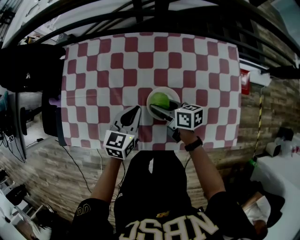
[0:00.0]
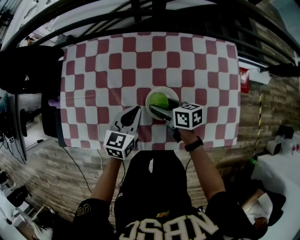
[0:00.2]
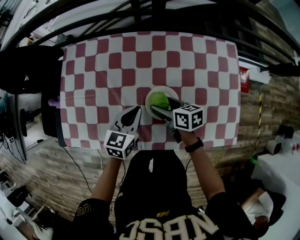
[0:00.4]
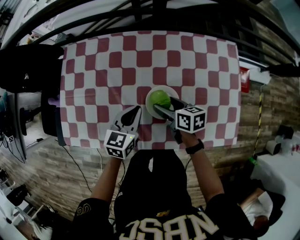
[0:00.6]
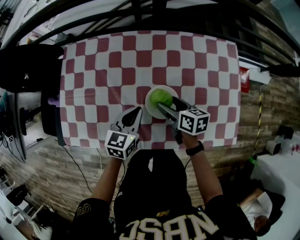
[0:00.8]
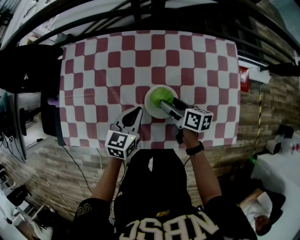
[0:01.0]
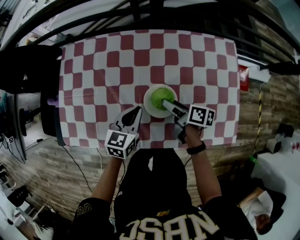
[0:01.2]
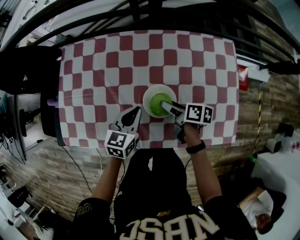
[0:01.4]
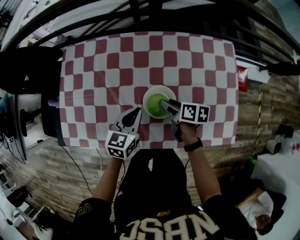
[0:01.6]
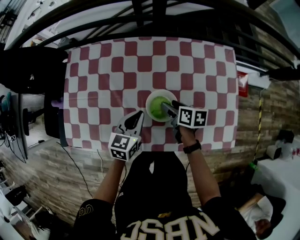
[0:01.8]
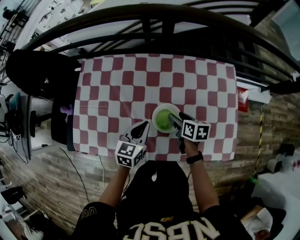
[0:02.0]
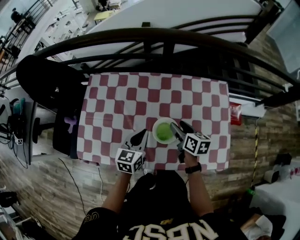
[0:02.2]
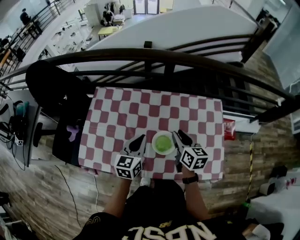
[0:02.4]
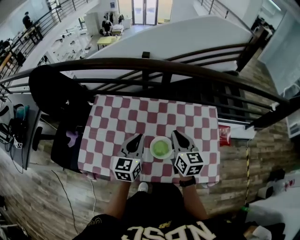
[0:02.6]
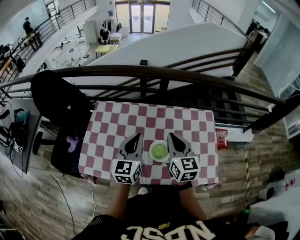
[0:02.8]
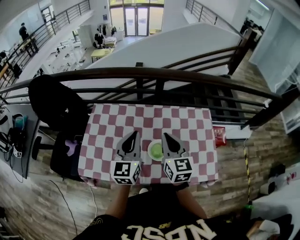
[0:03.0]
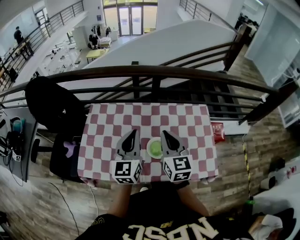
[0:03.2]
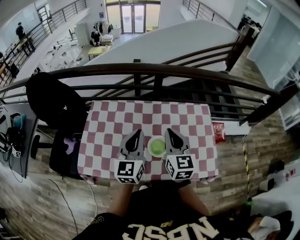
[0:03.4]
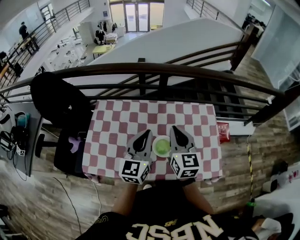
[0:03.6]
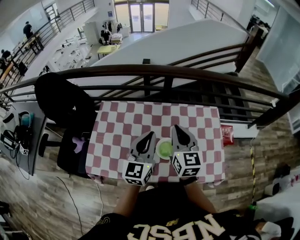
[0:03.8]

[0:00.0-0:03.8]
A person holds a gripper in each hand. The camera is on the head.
0:00.0 to 0:01.2: The right gripper shifts roughly 5 cm to the right, and rotates about 20 degrees.
0:01.2 to 0:02.6: The two grippers go about 25 cm upward. The left gripper rotates roughly 20 degrees. The right gripper twists roughly 50 degrees counterclockwise, seen from behind, and closes up.
0:02.6 to 0:03.8: The grippers both shift upward by approximately 10 cm.

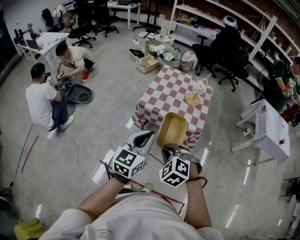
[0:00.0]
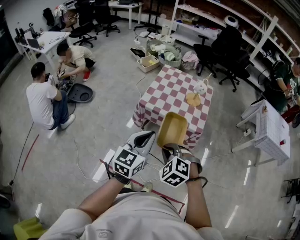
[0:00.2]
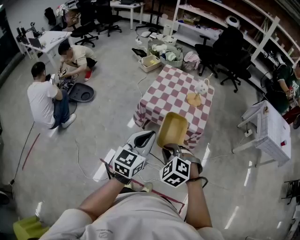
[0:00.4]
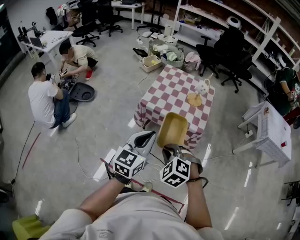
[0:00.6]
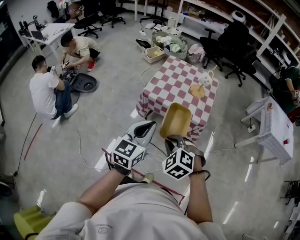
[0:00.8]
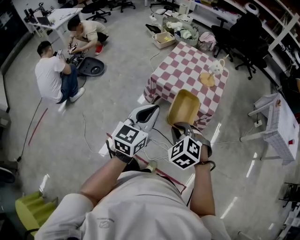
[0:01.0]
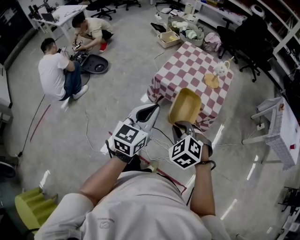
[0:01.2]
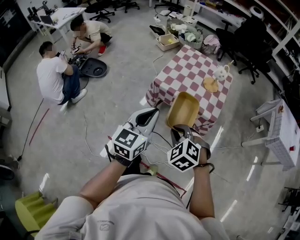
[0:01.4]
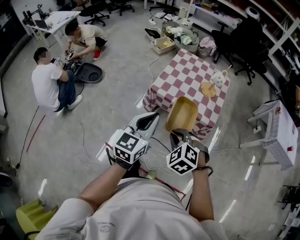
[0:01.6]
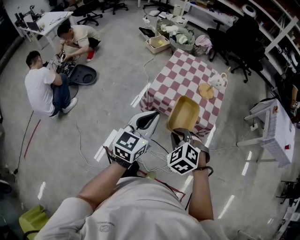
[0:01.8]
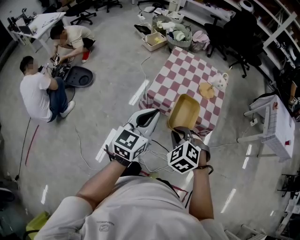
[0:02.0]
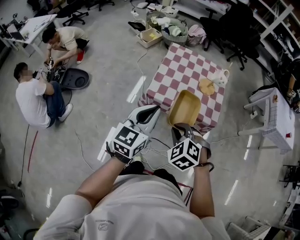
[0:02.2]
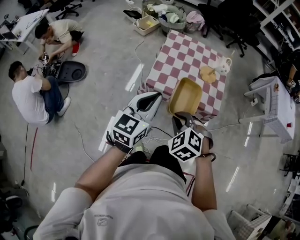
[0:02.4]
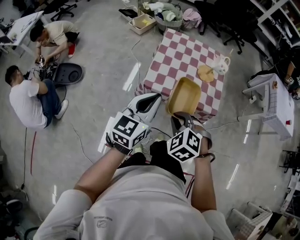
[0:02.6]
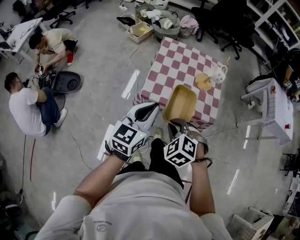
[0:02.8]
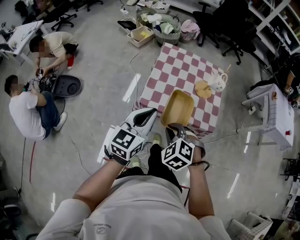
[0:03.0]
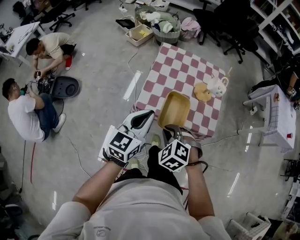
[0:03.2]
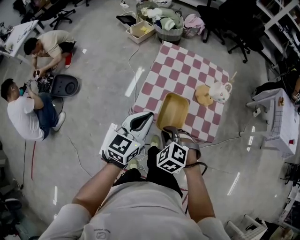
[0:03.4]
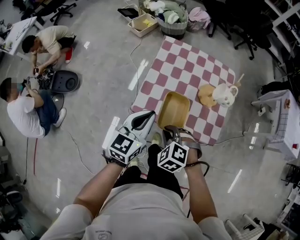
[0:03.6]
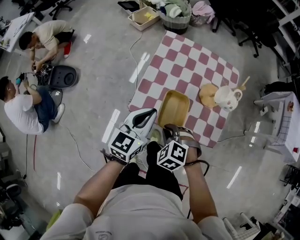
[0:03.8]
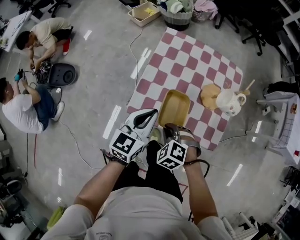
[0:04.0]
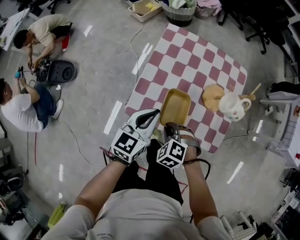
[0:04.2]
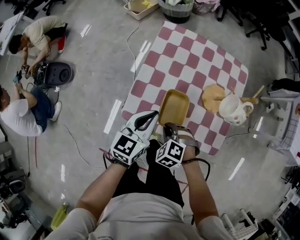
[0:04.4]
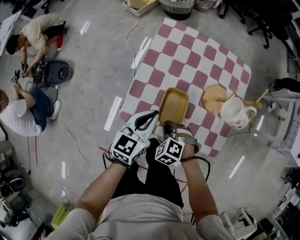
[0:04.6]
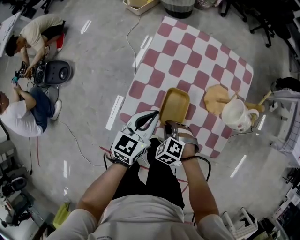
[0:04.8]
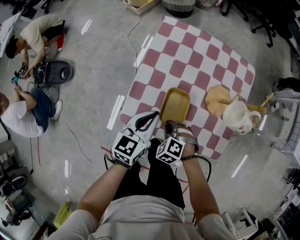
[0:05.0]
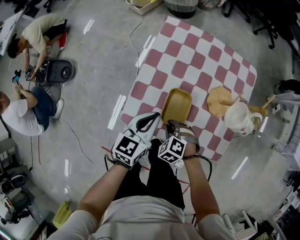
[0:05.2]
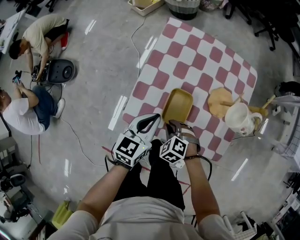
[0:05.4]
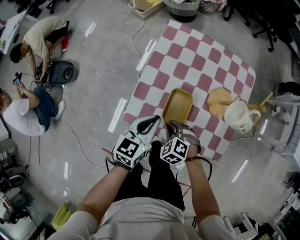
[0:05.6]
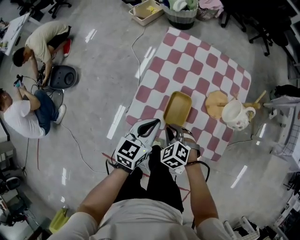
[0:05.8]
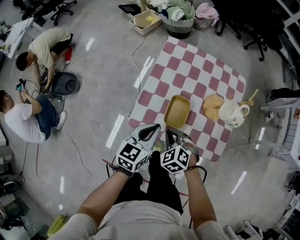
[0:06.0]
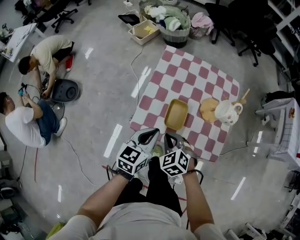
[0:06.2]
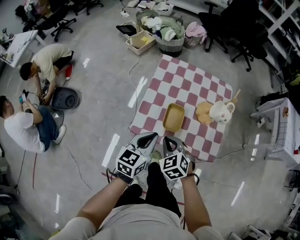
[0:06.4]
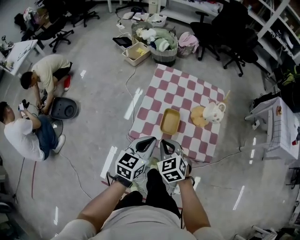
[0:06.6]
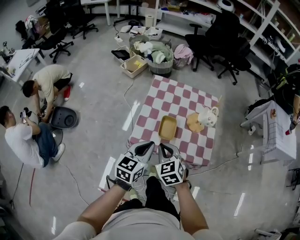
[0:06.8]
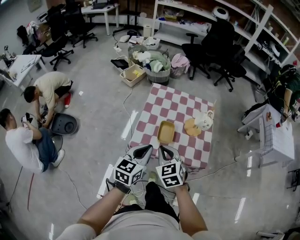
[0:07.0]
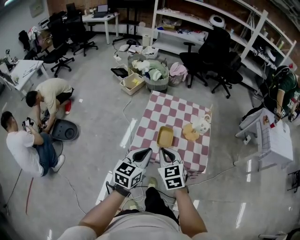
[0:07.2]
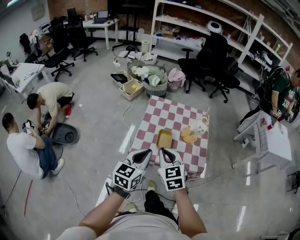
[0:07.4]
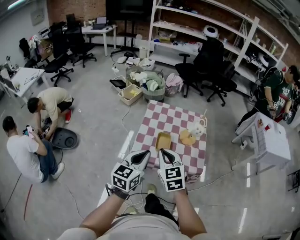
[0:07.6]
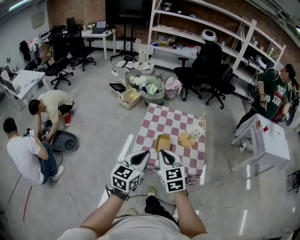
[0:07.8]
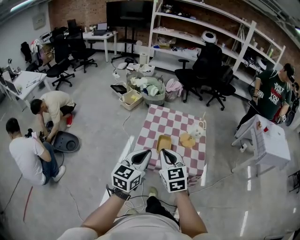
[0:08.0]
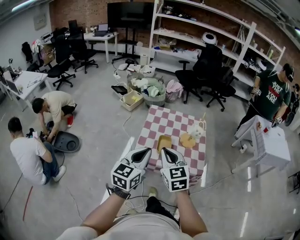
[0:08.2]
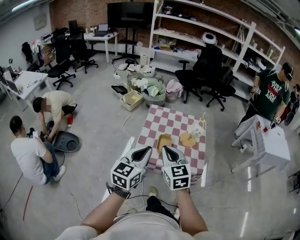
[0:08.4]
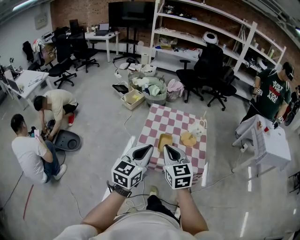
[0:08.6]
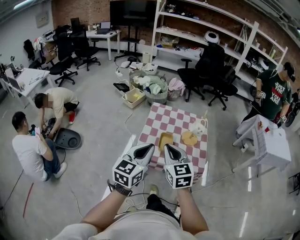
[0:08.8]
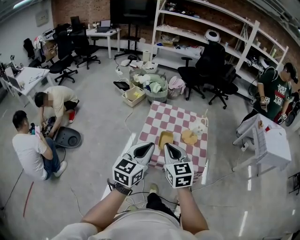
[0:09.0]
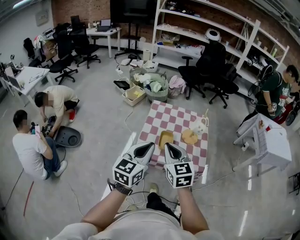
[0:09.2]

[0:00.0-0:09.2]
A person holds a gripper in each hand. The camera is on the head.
0:00.0 to 0:01.6: Both grippers move forward, approximately 5 cm.
0:01.6 to 0:03.0: The right gripper is displaced forward and to the left by about 20 cm; the left gripper moves forward, approximately 20 cm.
0:03.0 to 0:04.6: The right gripper goes about 35 cm downward and forward. Meanwhile the left gripper heads forward, downward and to the right, covering some 30 cm.
0:04.6 to 0:06.2: The right gripper heads upward, covering about 10 cm, and turns by some 20 degrees. The left gripper shifts roughly 5 cm backward.
0:06.2 to 0:07.6: The right gripper goes about 25 cm upward, and rotates approximately 40 degrees; the left gripper shifts approximately 25 cm upward and backward.
0:07.6 to 0:09.2: The left gripper travels upward by approximately 5 cm, while the right gripper moves some 5 cm.

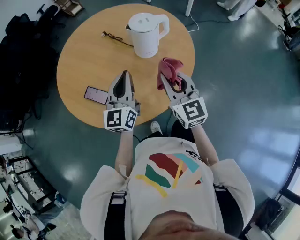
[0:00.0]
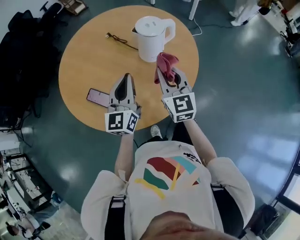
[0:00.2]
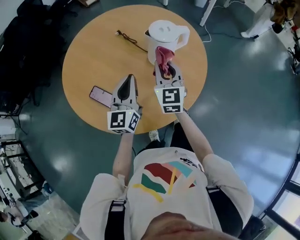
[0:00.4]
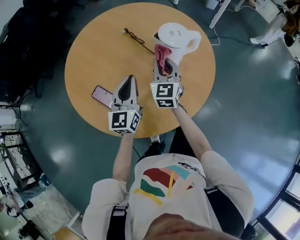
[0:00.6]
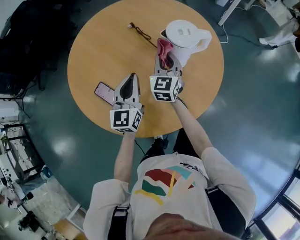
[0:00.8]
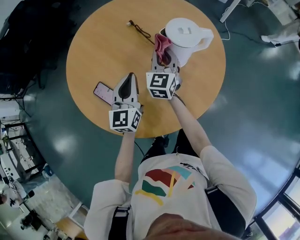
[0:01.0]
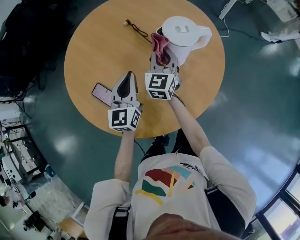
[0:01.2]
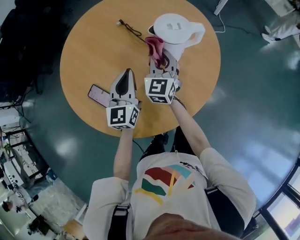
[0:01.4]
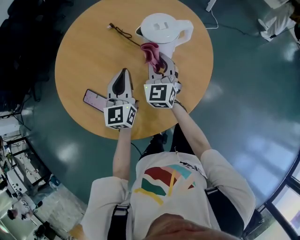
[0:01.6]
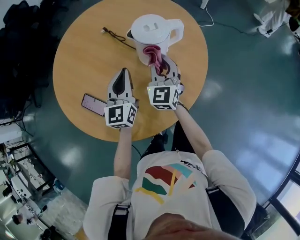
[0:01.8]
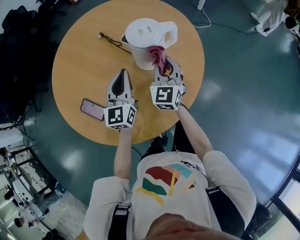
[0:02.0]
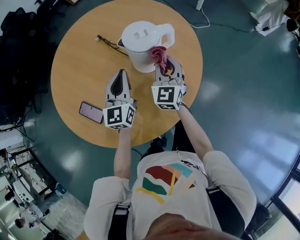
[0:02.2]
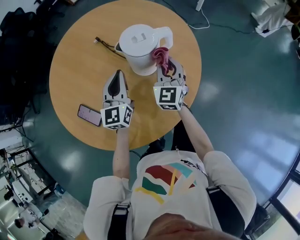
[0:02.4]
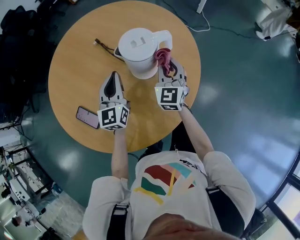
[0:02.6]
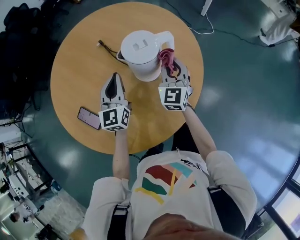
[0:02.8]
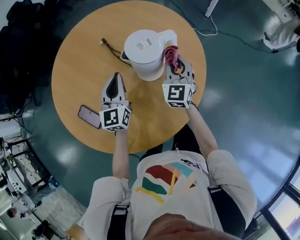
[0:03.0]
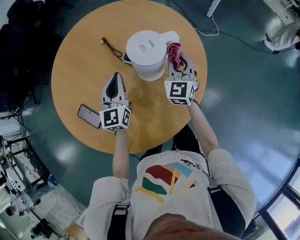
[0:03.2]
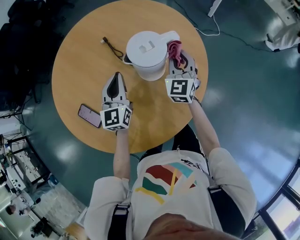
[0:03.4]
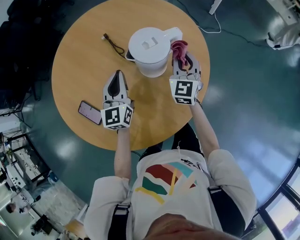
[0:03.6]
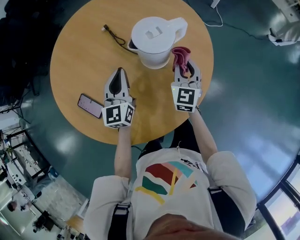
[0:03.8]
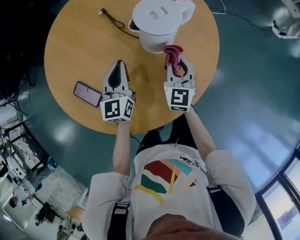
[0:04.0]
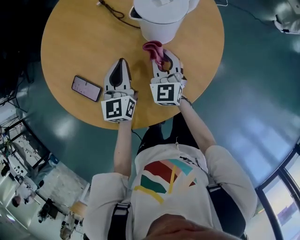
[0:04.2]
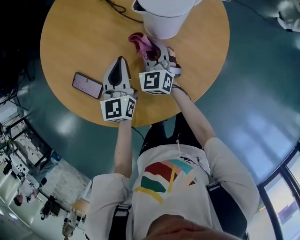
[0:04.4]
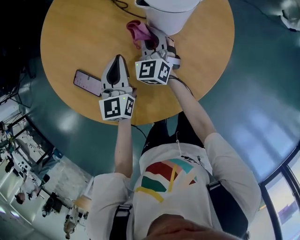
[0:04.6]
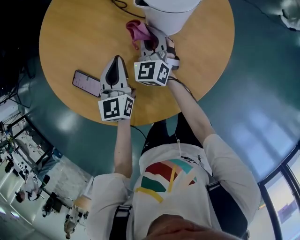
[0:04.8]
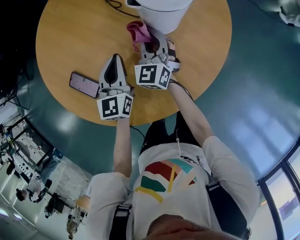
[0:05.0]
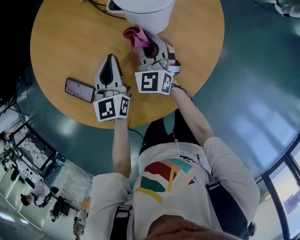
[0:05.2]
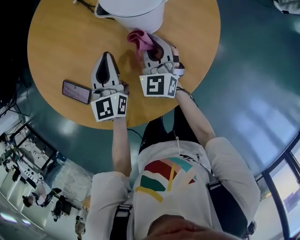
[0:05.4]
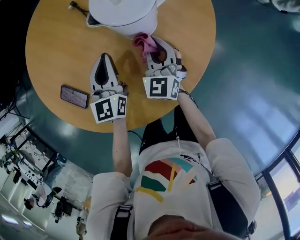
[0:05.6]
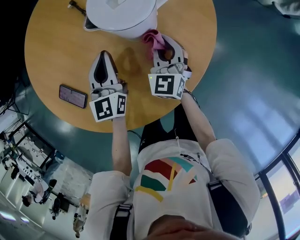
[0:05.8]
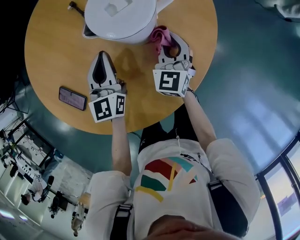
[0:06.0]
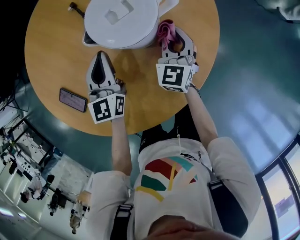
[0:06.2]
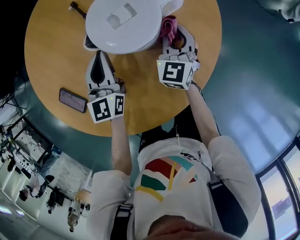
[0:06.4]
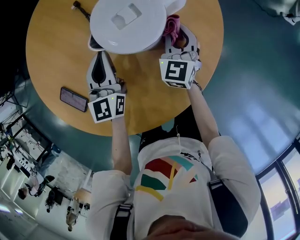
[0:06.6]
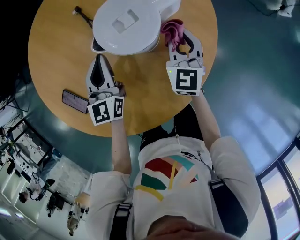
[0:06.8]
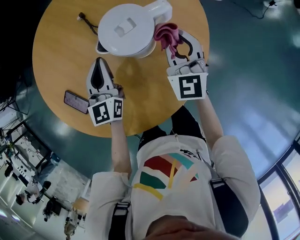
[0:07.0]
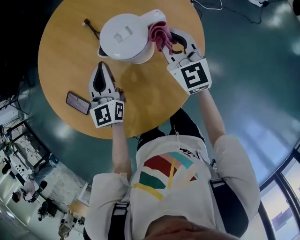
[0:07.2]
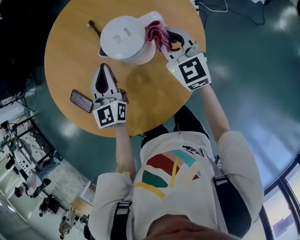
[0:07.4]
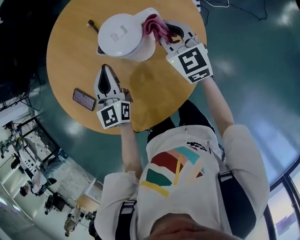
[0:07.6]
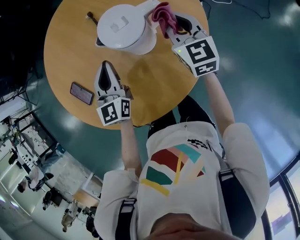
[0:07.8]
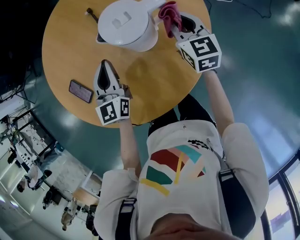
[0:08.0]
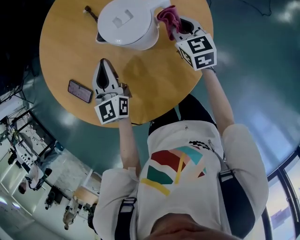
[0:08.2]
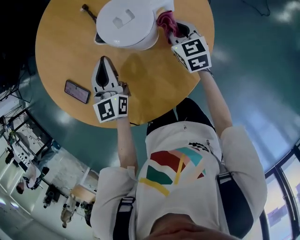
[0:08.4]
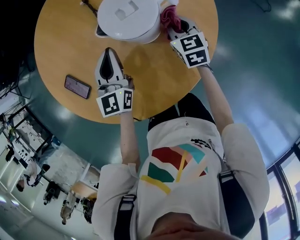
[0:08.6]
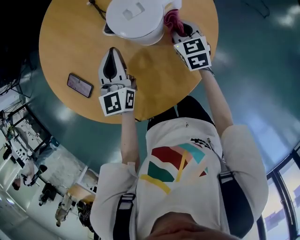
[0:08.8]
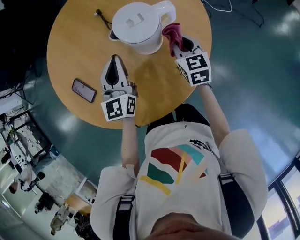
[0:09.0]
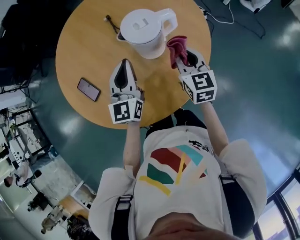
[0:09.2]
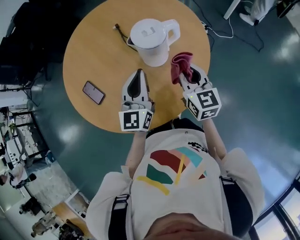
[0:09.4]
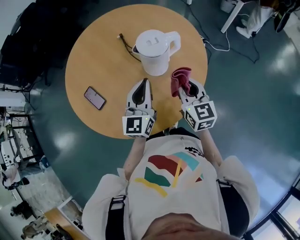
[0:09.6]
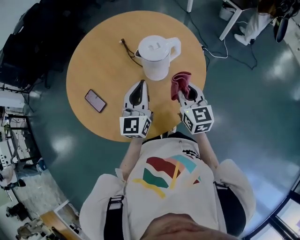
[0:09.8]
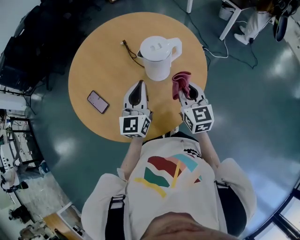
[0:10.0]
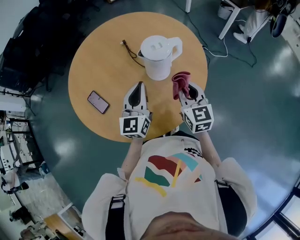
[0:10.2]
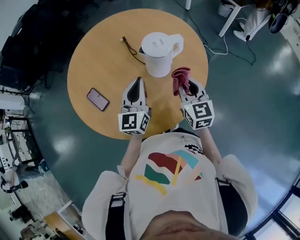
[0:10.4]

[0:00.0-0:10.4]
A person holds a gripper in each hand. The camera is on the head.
0:00.0 to 0:01.4: The right gripper is displaced forward by about 25 cm; the left gripper goes some 15 cm forward and downward.
0:01.4 to 0:03.0: The right gripper heads to the right and forward, covering some 15 cm, while the left gripper goes about 10 cm forward.
0:03.0 to 0:04.4: The left gripper shifts roughly 10 cm downward and backward. The right gripper goes roughly 20 cm to the left, downward and backward.
0:04.4 to 0:06.0: The right gripper is displaced to the right by roughly 15 cm. The left gripper is displaced forward and to the right by some 10 cm.
0:06.0 to 0:07.4: The right gripper is displaced upward by roughly 15 cm, and swivels some 30 degrees; the left gripper heads upward, covering approximately 10 cm.
0:07.4 to 0:09.0: The right gripper is displaced downward by approximately 10 cm, and changes its angle by some 20 degrees.
0:09.0 to 0:10.4: The left gripper heads backward and upward, covering about 10 cm. The right gripper is displaced backward and upward by some 15 cm.
